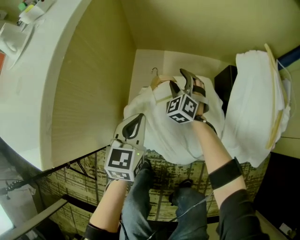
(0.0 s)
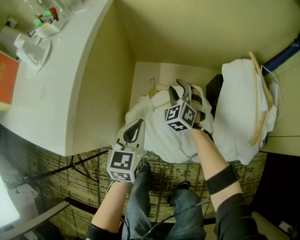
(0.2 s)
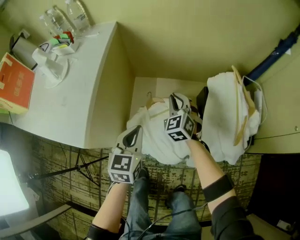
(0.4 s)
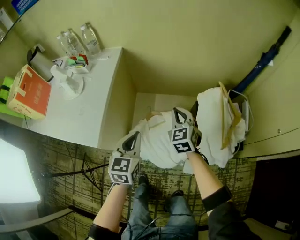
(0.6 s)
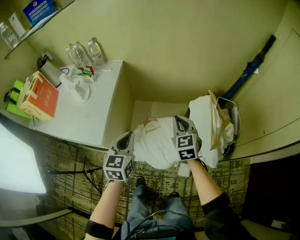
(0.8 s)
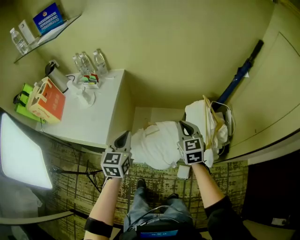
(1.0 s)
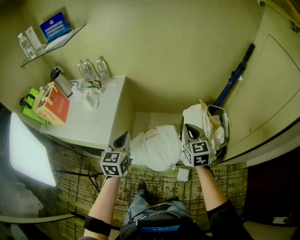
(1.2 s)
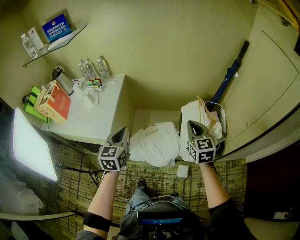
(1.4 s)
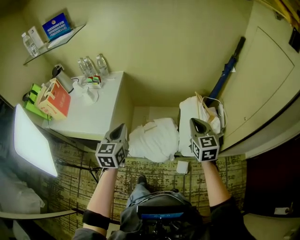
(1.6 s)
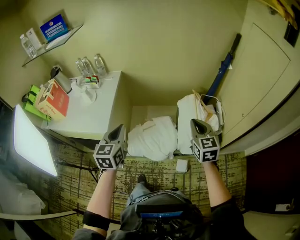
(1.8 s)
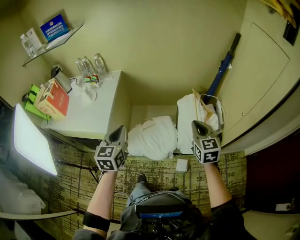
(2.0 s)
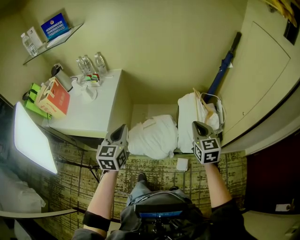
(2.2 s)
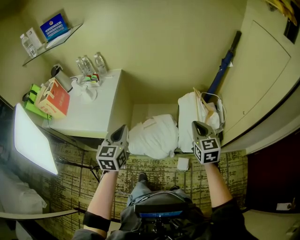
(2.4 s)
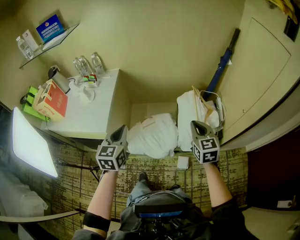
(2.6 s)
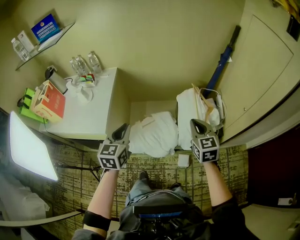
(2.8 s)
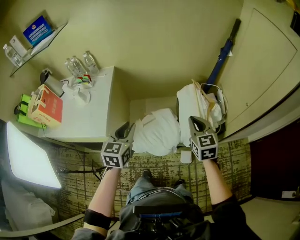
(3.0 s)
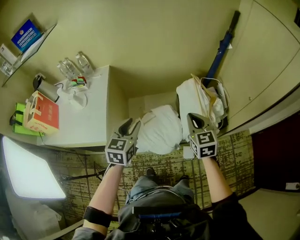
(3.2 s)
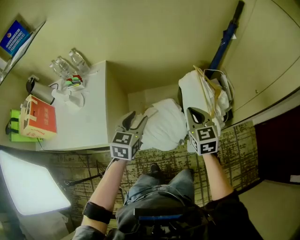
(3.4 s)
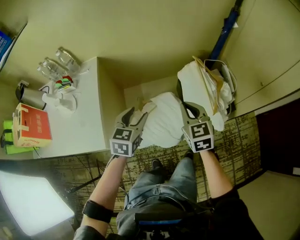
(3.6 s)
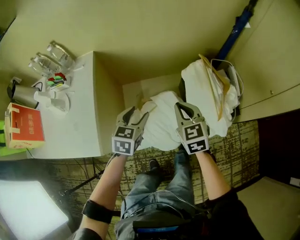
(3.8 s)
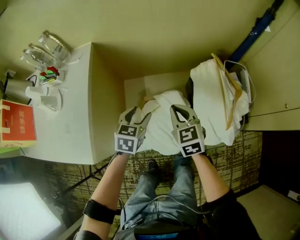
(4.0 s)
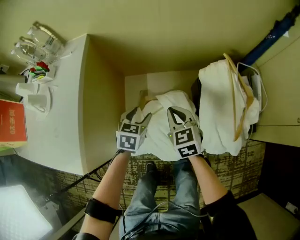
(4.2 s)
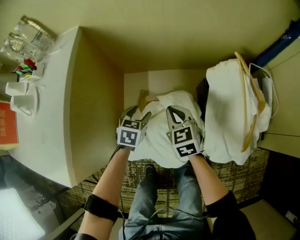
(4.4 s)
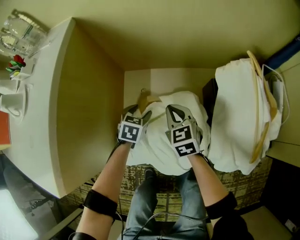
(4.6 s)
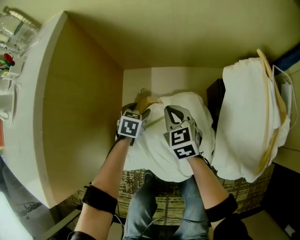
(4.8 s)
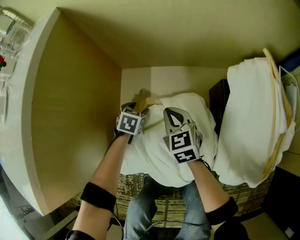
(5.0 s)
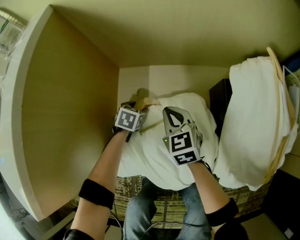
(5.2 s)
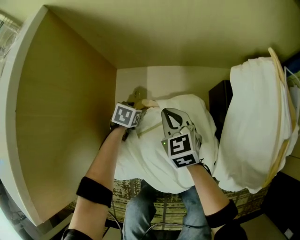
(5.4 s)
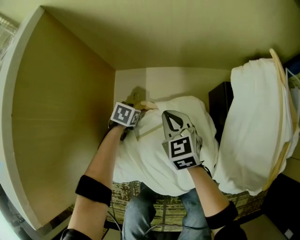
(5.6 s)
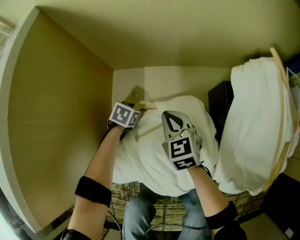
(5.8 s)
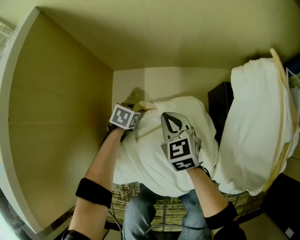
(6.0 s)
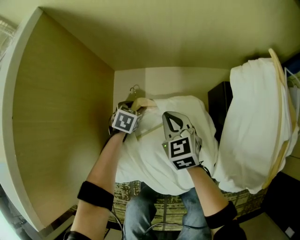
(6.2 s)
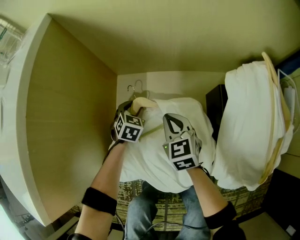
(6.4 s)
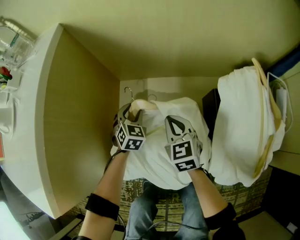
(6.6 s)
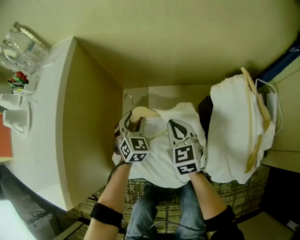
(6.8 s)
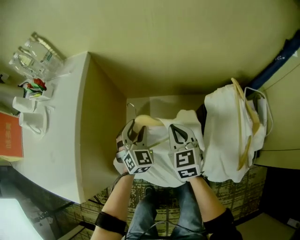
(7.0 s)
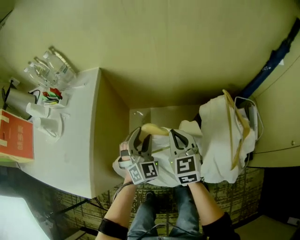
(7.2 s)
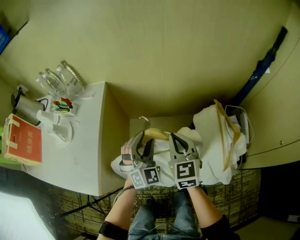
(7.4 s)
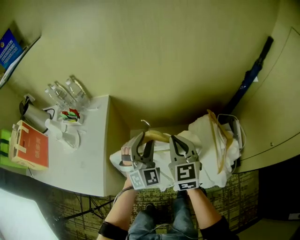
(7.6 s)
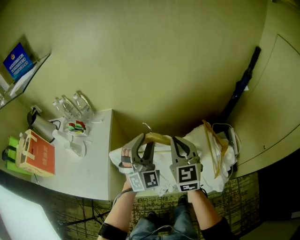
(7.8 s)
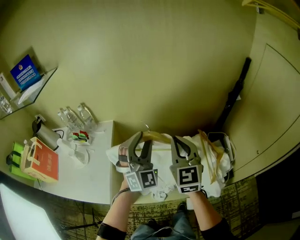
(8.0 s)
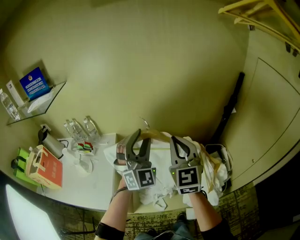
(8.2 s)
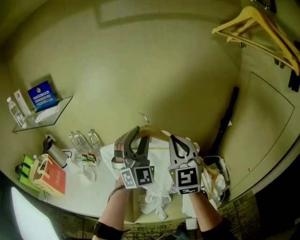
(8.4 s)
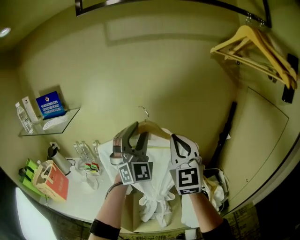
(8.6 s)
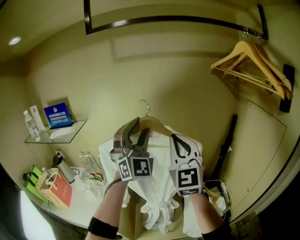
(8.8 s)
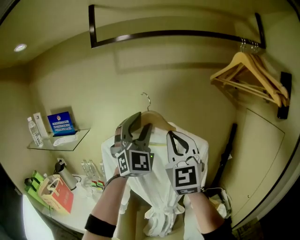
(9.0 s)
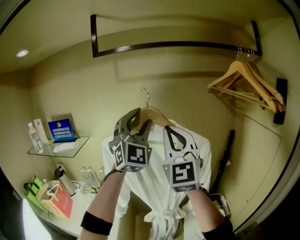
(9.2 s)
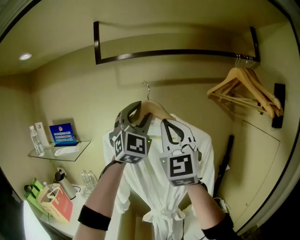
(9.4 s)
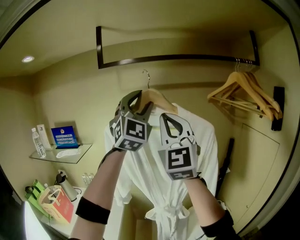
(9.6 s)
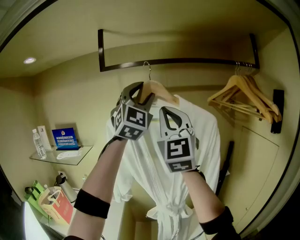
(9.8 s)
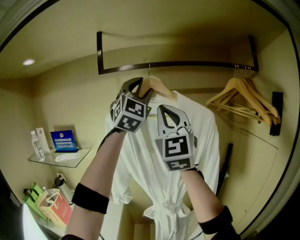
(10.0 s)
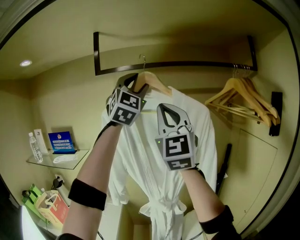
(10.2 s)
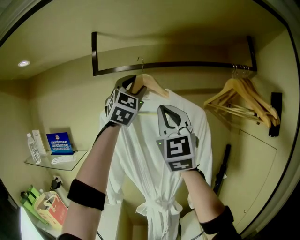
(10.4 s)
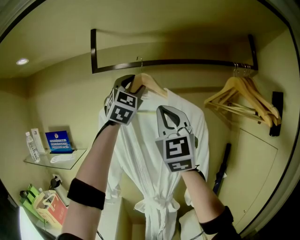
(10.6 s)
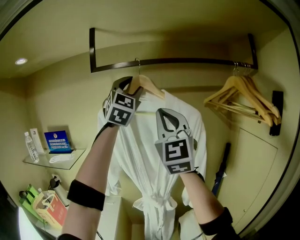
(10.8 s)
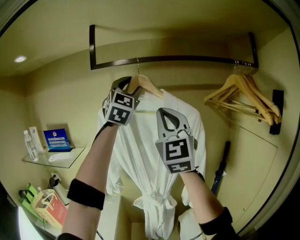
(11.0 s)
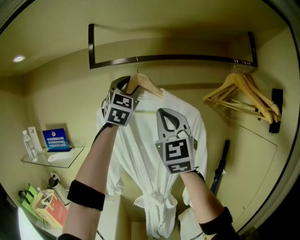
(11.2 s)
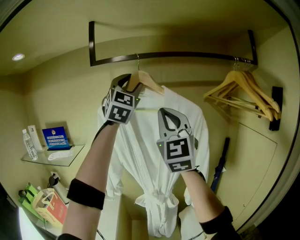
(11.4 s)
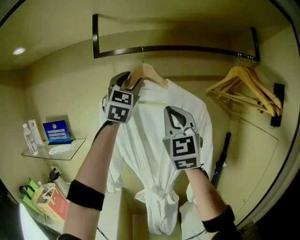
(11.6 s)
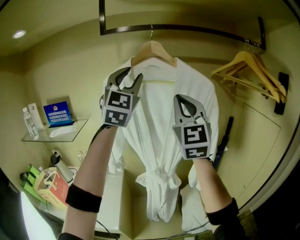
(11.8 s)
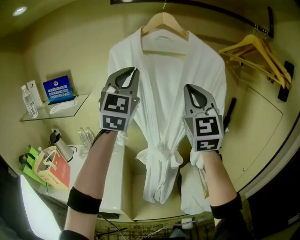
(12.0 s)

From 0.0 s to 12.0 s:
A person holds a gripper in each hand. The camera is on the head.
From 0.0 s to 1.6 s: The left gripper heads upward, covering approximately 50 cm. Meanwhile the right gripper travels upward and backward by some 60 cm, twists some 40 degrees clockwise, seen from behind, and closes up.
From 1.6 s to 3.0 s: The left gripper moves roughly 5 cm.
From 3.0 s to 4.4 s: The right gripper shifts roughly 50 cm downward, forward and to the left. Meanwhile the left gripper is displaced downward and forward by approximately 50 cm, turns by some 30 degrees, and opens.
From 4.4 s to 6.0 s: The right gripper travels downward by about 15 cm; the left gripper moves downward, approximately 25 cm.
From 6.0 s to 7.6 s: Both grippers move upward, roughly 60 cm. The left gripper angles its fingers upward, by some 60 degrees. The right gripper changes its angle by some 30 degrees.
From 7.6 s to 9.0 s: Both grippers move upward, roughly 60 cm. The left gripper tilts its fingers some 30 degrees upward; the right gripper angles its fingers upward, by roughly 40 degrees.
From 9.0 s to 10.4 s: Both grippers move upward, roughly 20 cm.
From 10.4 s to 12.0 s: The left gripper goes approximately 20 cm downward and to the left, and closes its fingers. The right gripper is displaced downward by some 15 cm.

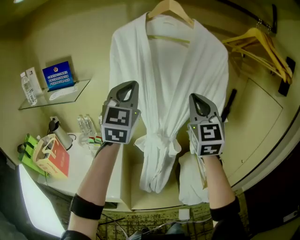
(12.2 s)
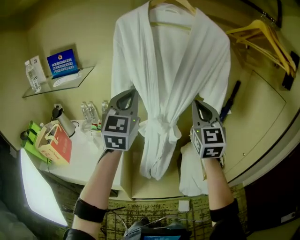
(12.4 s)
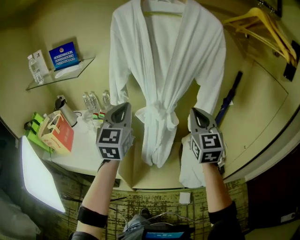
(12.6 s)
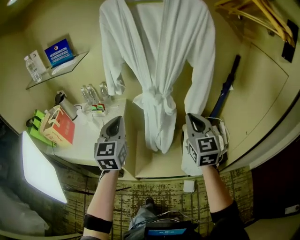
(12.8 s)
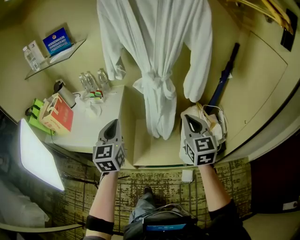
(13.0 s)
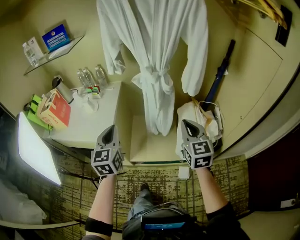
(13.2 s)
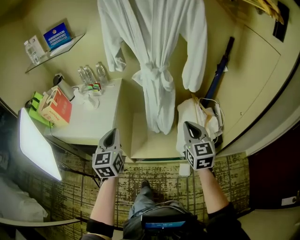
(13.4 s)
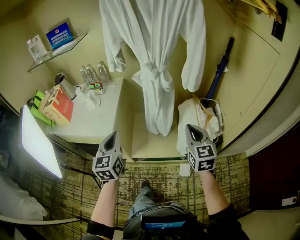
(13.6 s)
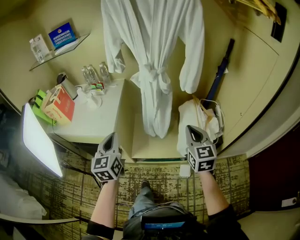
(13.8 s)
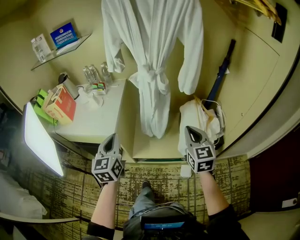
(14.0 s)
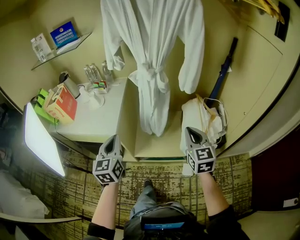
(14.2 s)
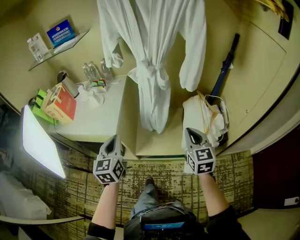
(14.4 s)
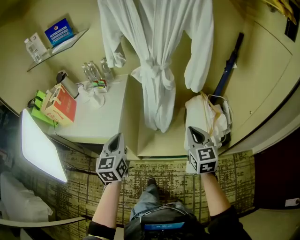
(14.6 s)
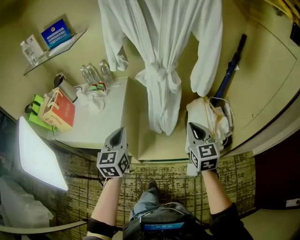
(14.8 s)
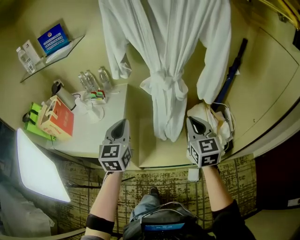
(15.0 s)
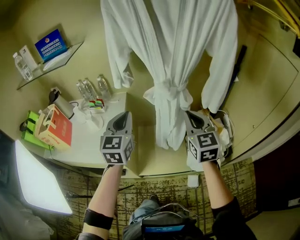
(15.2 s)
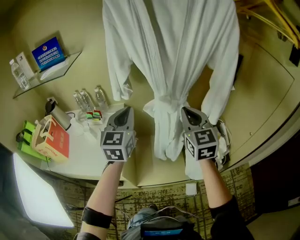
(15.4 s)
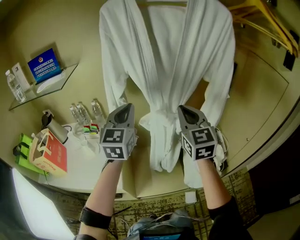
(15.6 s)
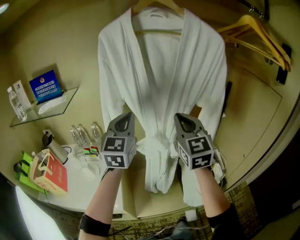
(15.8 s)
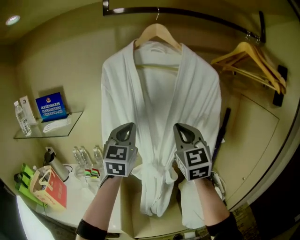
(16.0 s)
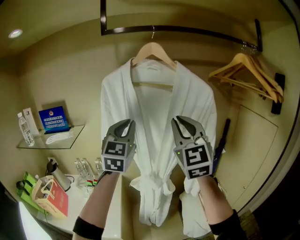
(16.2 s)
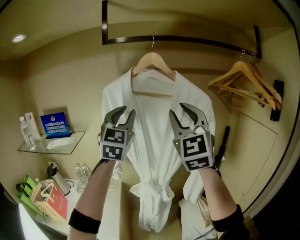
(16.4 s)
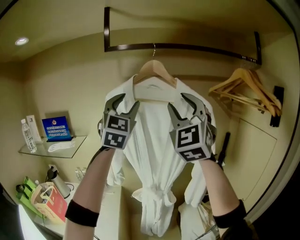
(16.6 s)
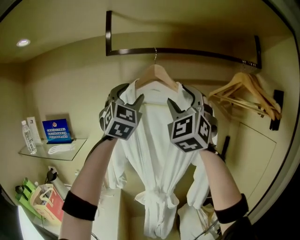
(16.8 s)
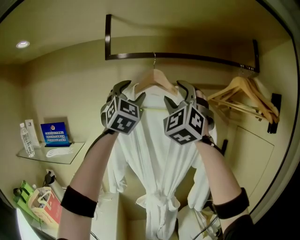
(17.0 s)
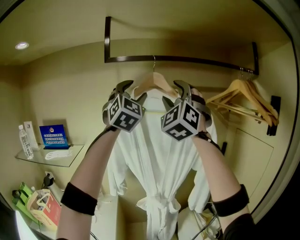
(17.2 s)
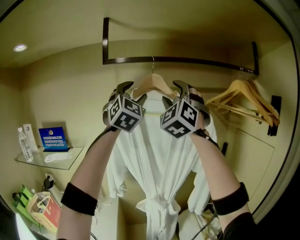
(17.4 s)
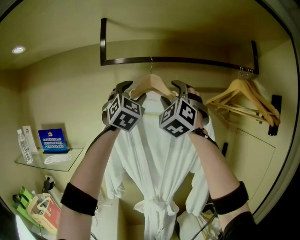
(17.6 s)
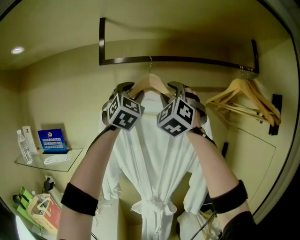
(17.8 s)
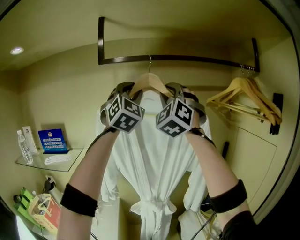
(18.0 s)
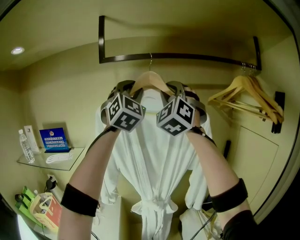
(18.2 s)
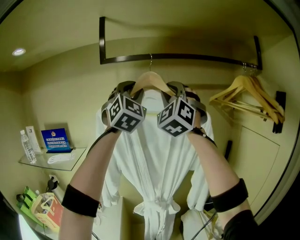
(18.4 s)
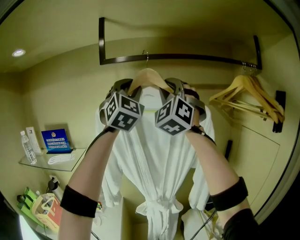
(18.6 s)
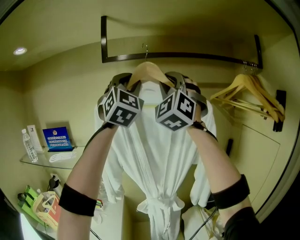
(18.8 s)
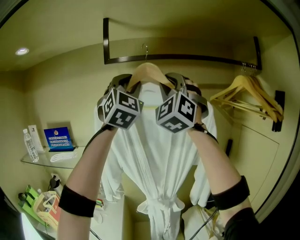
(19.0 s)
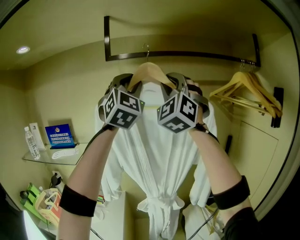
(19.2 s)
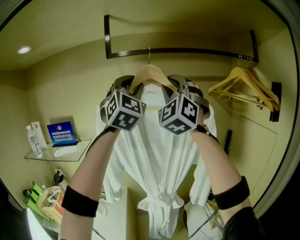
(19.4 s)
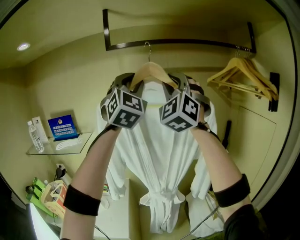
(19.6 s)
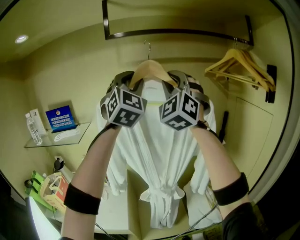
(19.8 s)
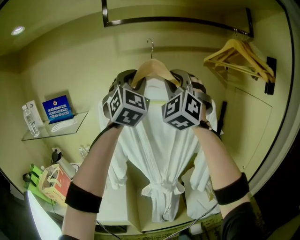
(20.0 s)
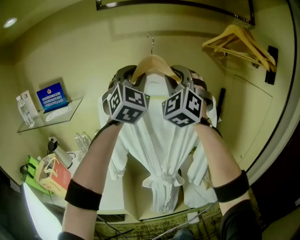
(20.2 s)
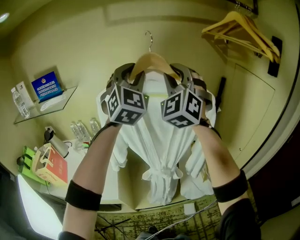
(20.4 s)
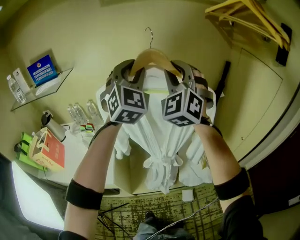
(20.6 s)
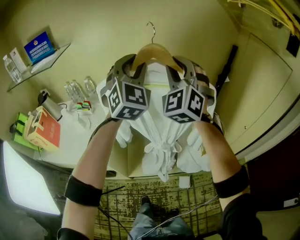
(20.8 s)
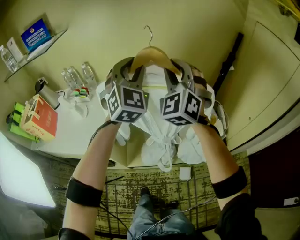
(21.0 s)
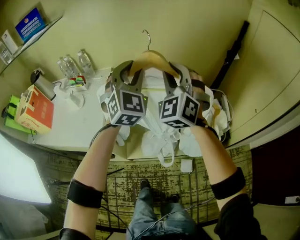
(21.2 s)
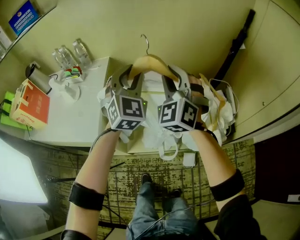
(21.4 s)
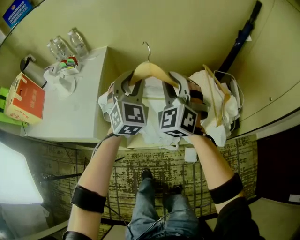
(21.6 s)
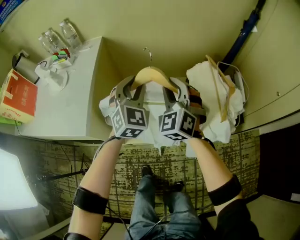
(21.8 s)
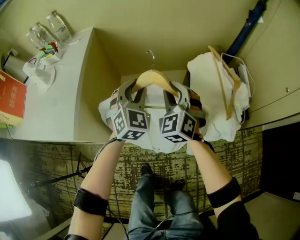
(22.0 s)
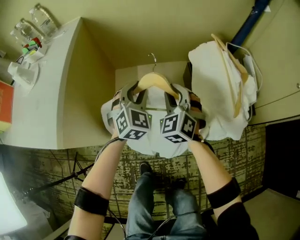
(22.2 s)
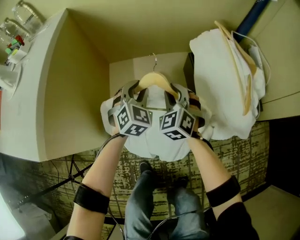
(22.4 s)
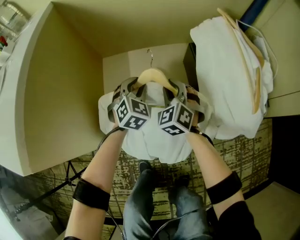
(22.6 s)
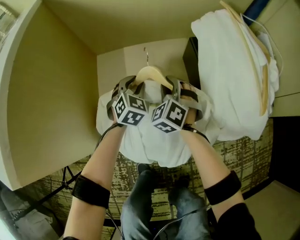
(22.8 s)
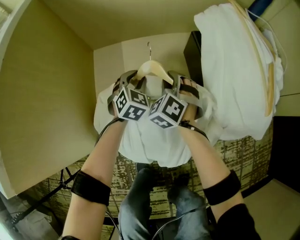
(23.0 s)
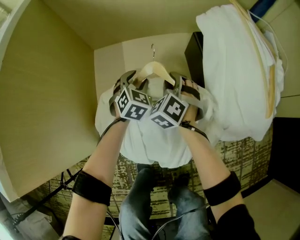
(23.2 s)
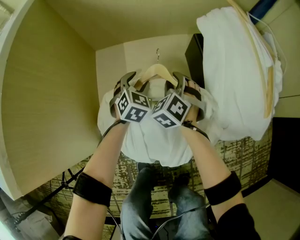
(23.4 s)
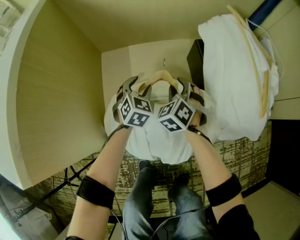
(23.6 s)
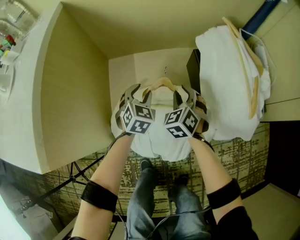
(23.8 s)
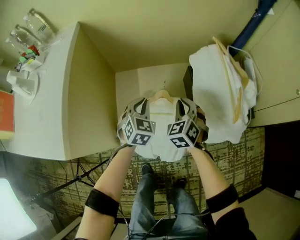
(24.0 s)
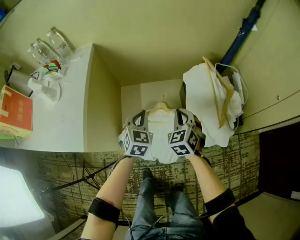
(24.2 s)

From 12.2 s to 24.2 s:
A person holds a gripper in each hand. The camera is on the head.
From 12.2 s to 13.8 s: The two grippers go roughly 40 cm downward and backward. The right gripper turns by some 40 degrees. The left gripper turns by some 40 degrees.
From 13.8 s to 15.2 s: The right gripper shifts about 20 cm forward and to the left. The left gripper travels forward by some 25 cm.
From 15.2 s to 16.6 s: Both grippers move upward, some 50 cm. The left gripper turns by approximately 40 degrees, and opens. The right gripper angles its fingers upward, by approximately 30 degrees, and opens.
From 16.6 s to 18.2 s: The left gripper heads upward and forward, covering some 10 cm, while the right gripper is displaced forward and upward by some 10 cm.
From 18.2 s to 19.8 s: The grippers both shift backward and downward by about 15 cm.
From 19.8 s to 21.2 s: Both grippers move downward, roughly 50 cm. The right gripper swivels roughly 30 degrees. The left gripper swivels about 20 degrees.
From 21.2 s to 22.6 s: The two grippers go roughly 60 cm downward. The right gripper tilts its fingers roughly 30 degrees downward. The left gripper tips its fingers downward by some 30 degrees.
From 22.6 s to 24.2 s: The two grippers go roughly 25 cm upward. The left gripper closes.
